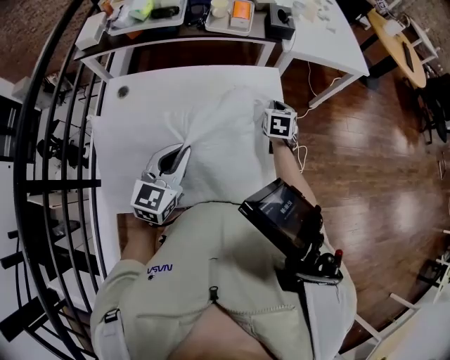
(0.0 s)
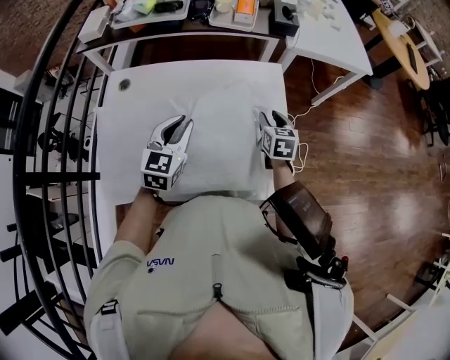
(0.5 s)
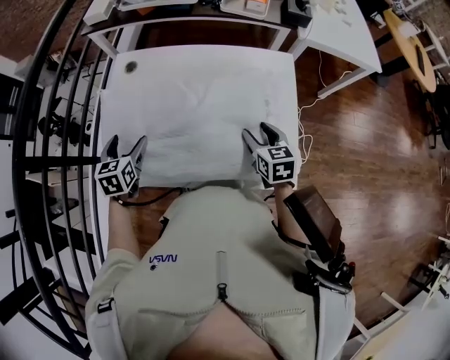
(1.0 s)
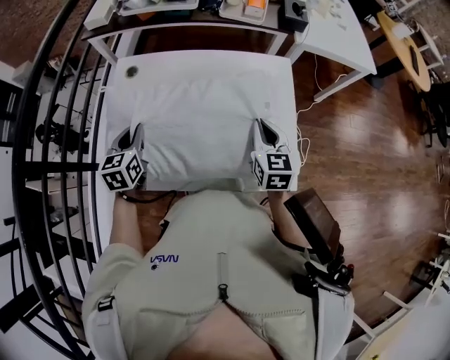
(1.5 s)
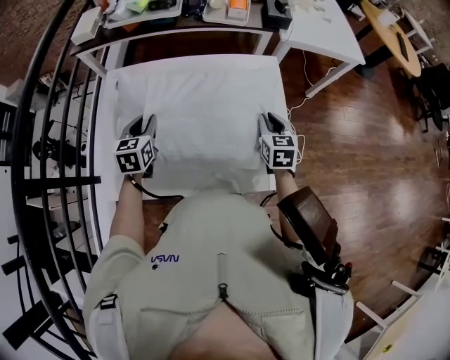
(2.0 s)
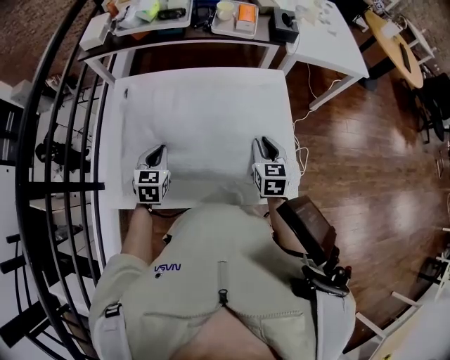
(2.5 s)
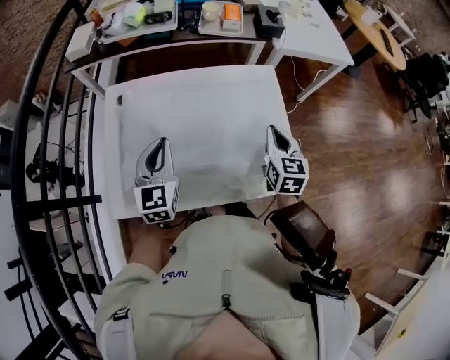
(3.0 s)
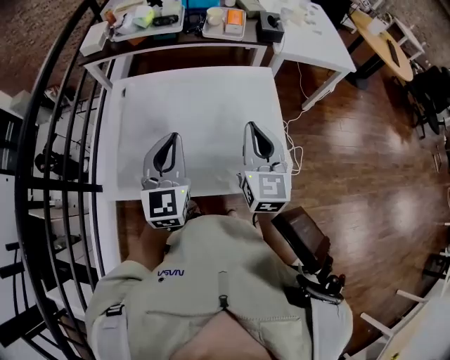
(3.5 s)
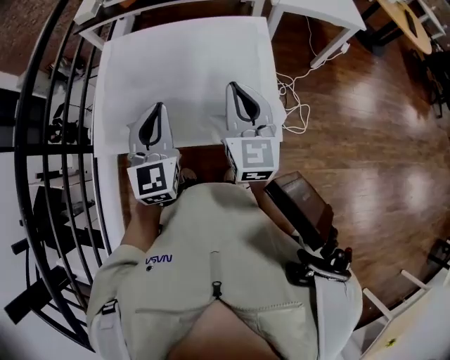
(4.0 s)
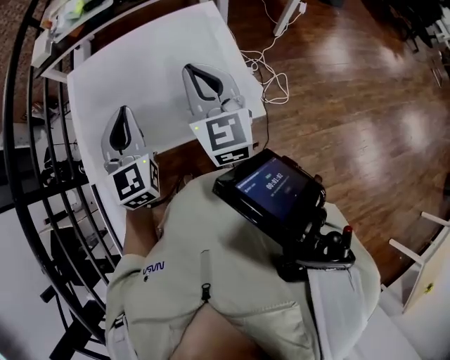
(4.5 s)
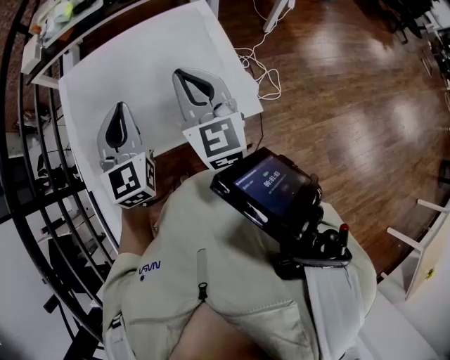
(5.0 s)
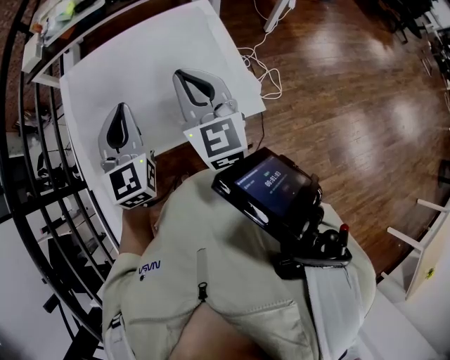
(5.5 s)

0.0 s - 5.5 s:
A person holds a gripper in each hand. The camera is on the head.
0.0 s - 2.0 s: The right gripper opens, then closes once more. Meanwhile the left gripper shifts by approximately 20 cm, swivels some 30 degrees, and opens and closes again.
2.0 s - 3.5 s: The left gripper heads upward, backward and to the right, covering about 25 cm, and changes its angle by approximately 30 degrees; the right gripper moves upward and backward, approximately 20 cm, and changes its angle by about 30 degrees.

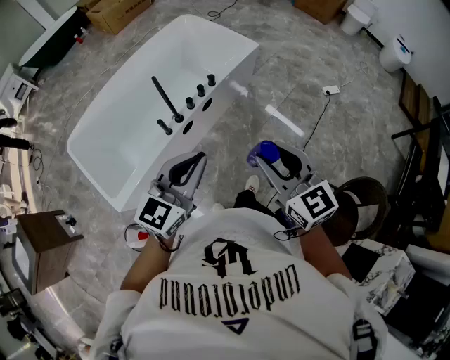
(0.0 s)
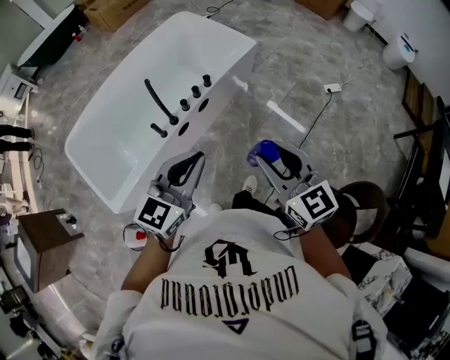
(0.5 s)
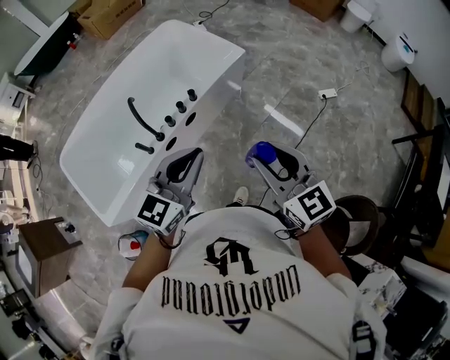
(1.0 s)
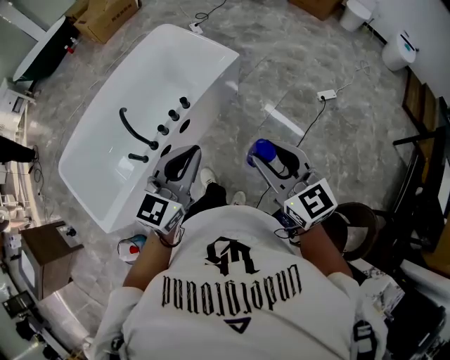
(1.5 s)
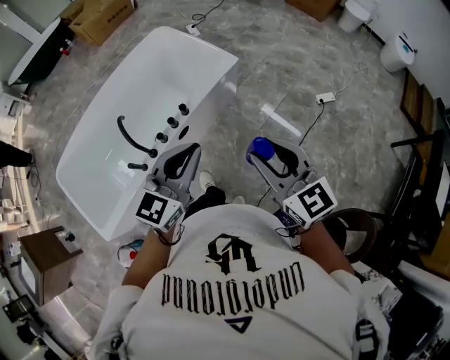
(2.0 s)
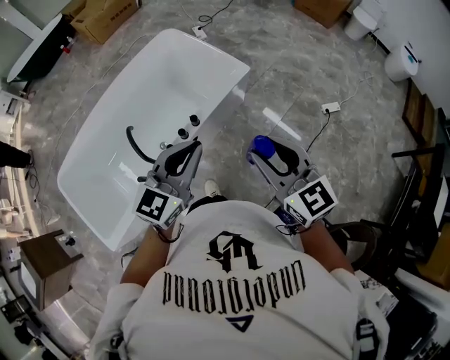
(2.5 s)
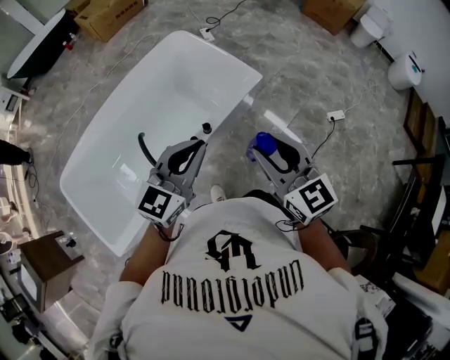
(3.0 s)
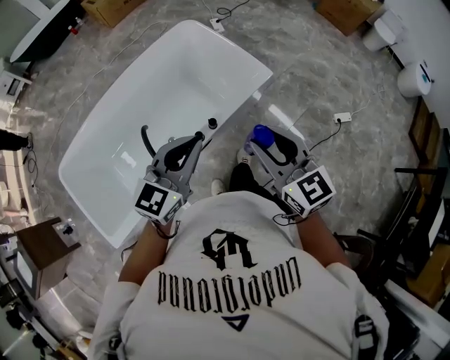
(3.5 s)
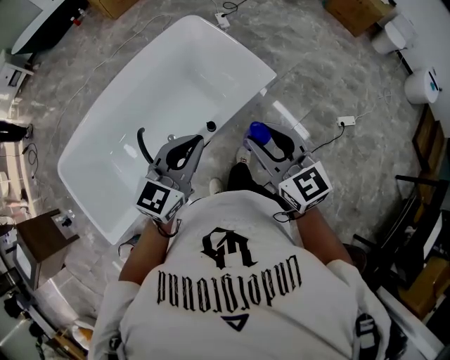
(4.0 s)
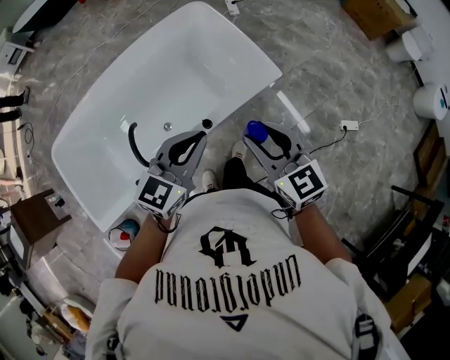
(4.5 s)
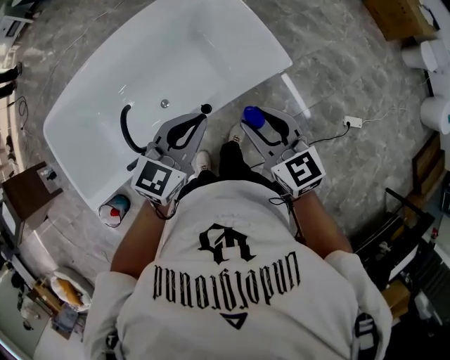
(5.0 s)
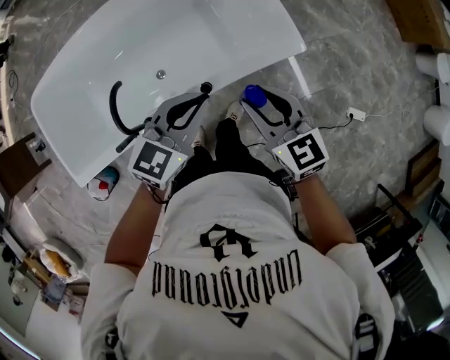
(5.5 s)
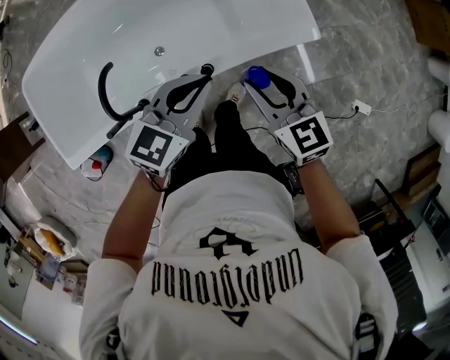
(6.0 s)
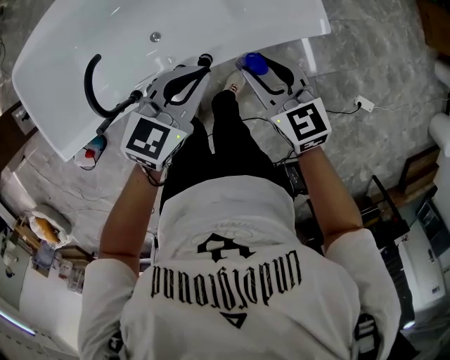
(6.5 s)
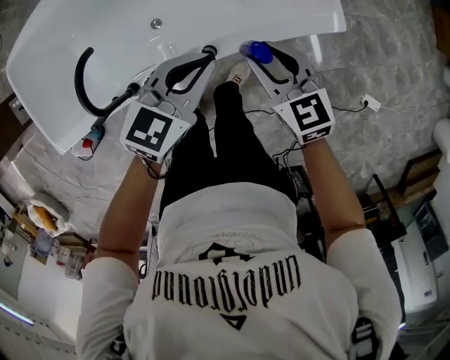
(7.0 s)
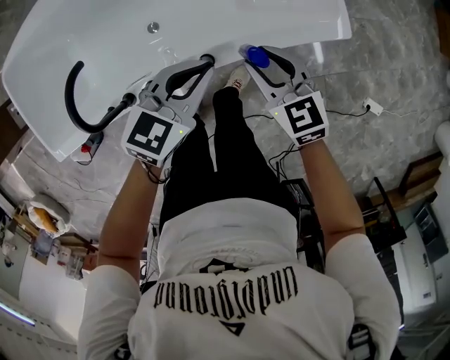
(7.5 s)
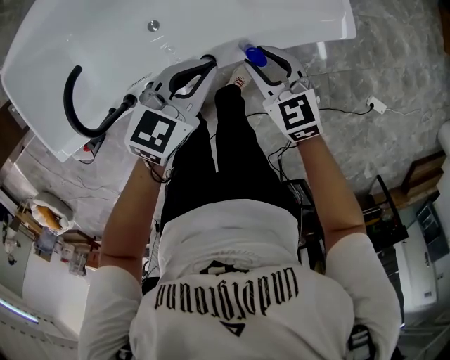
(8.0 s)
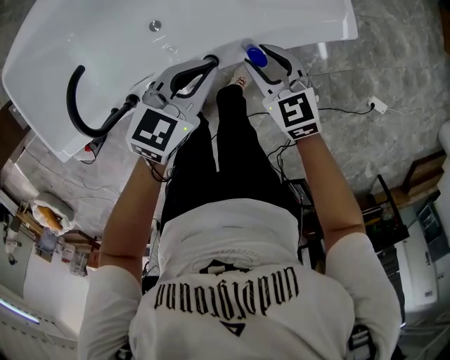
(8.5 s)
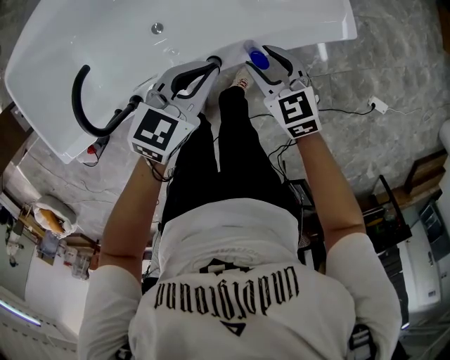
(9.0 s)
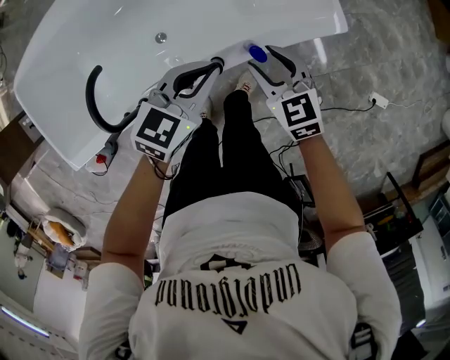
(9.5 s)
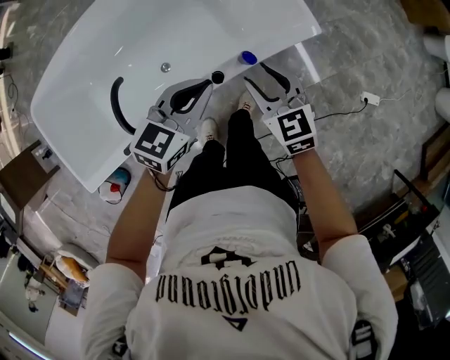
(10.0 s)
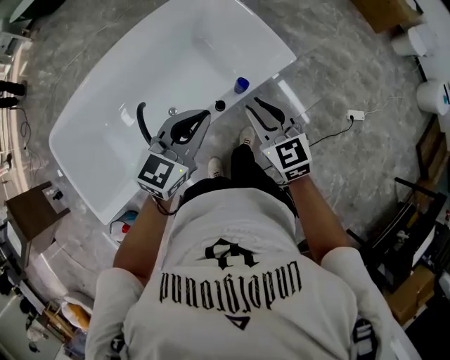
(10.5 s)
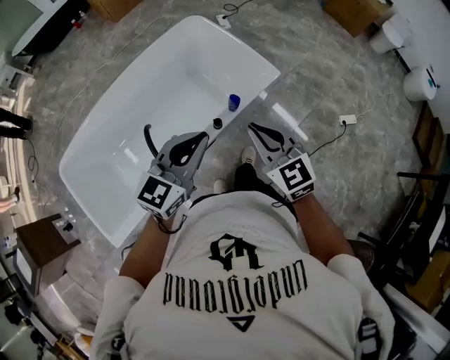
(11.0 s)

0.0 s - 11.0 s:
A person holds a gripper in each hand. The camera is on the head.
0.0 s - 2.0 s: The grippers both shift forward and to the right by approximately 30 cm.
2.0 s - 3.5 s: The grippers both shift forward and to the left by approximately 25 cm.
3.5 s - 5.5 s: The two grippers go approximately 25 cm forward and downward. The right gripper changes its angle by approximately 30 degrees.
5.5 s - 7.5 s: Both grippers move downward, about 20 cm.
7.5 s - 9.0 s: The grippers make only small movements.
9.0 s - 11.0 s: Both grippers move upward and backward, some 40 cm. The left gripper rotates roughly 30 degrees, while the right gripper turns by approximately 30 degrees, and closes.

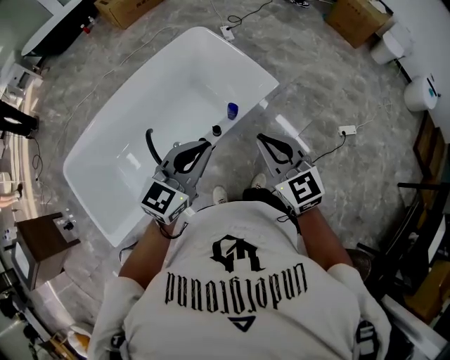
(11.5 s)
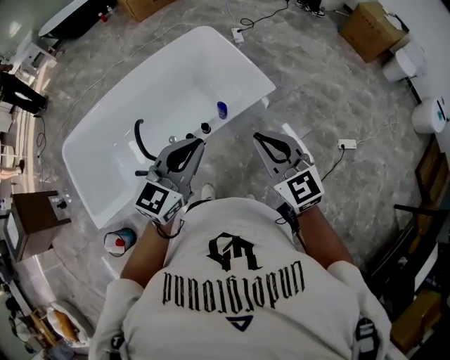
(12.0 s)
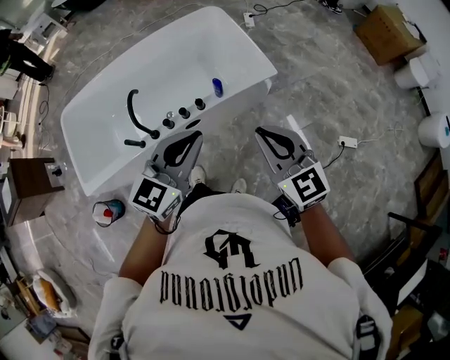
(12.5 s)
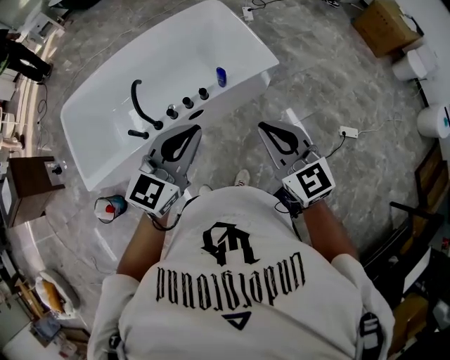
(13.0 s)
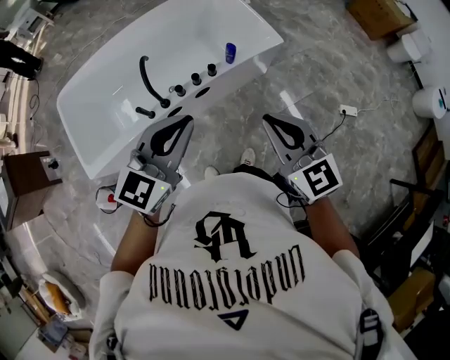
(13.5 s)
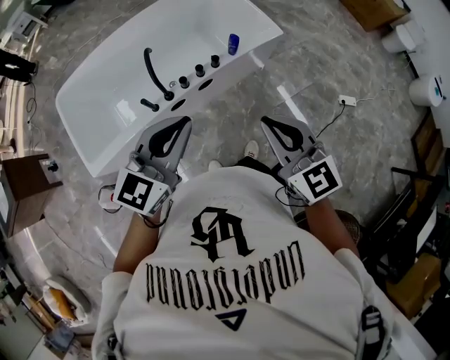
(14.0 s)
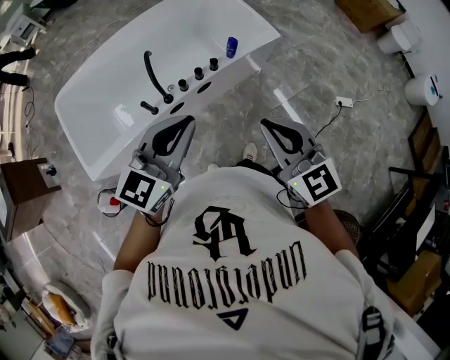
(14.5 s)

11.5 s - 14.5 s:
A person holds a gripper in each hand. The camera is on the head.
11.5 s - 13.0 s: The right gripper is displaced to the right and backward by about 15 cm; the left gripper is displaced backward and to the right by approximately 15 cm.
13.0 s - 14.5 s: Both grippers travel together to the left and backward, roughly 20 cm.

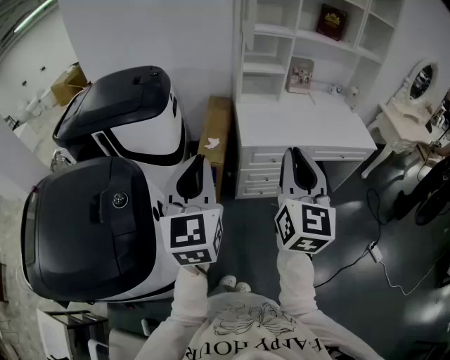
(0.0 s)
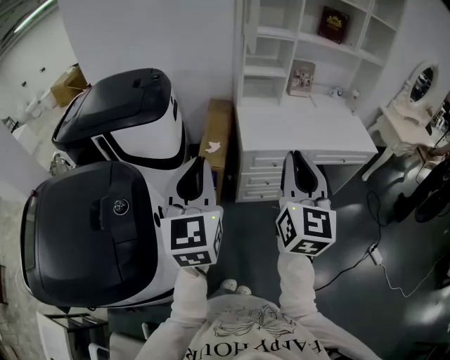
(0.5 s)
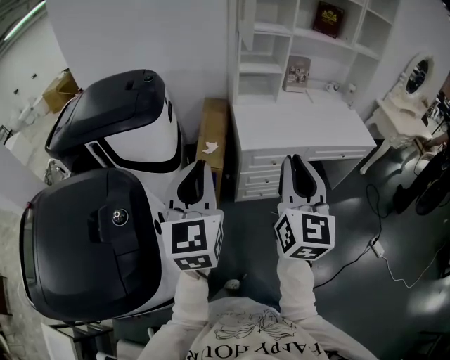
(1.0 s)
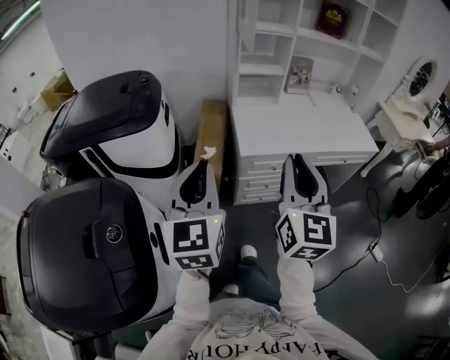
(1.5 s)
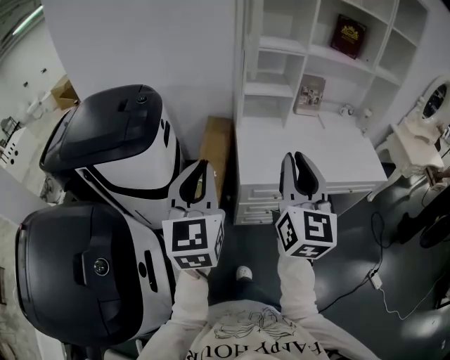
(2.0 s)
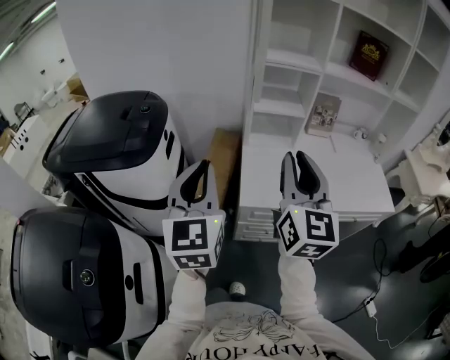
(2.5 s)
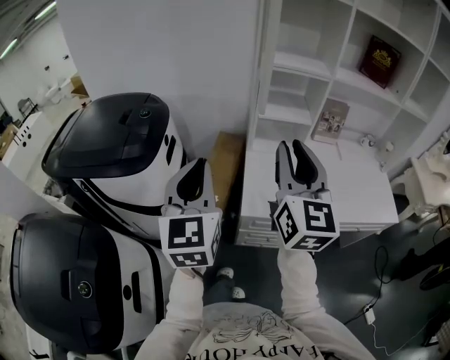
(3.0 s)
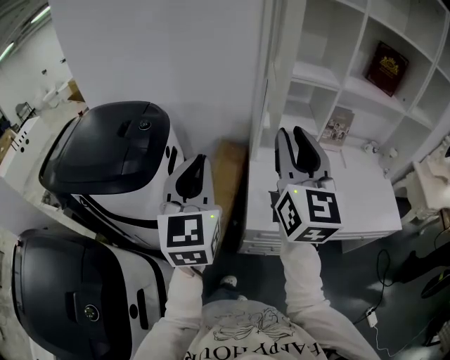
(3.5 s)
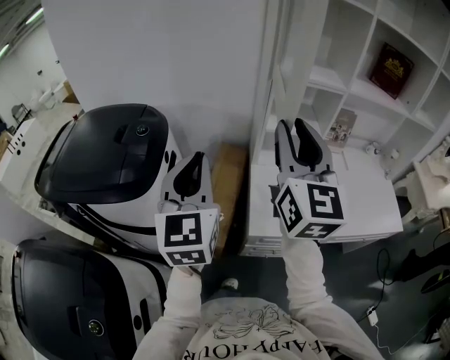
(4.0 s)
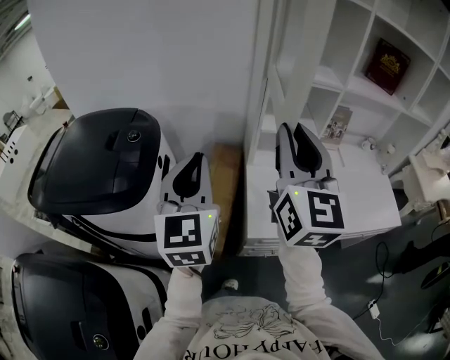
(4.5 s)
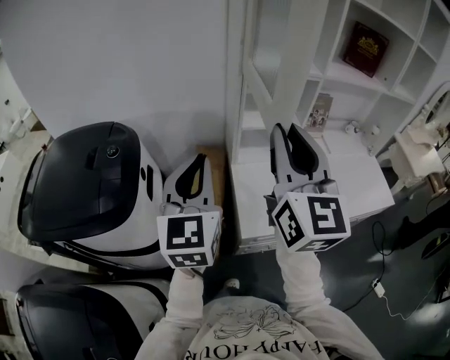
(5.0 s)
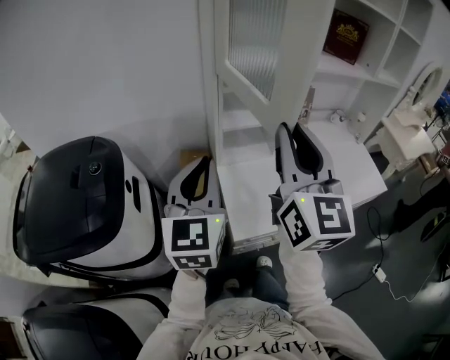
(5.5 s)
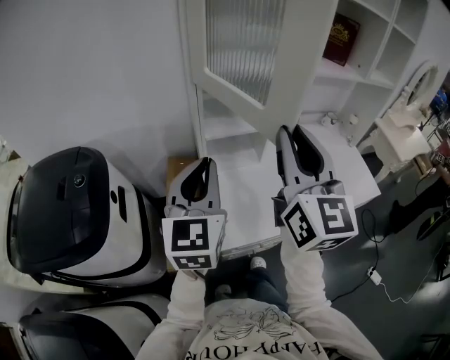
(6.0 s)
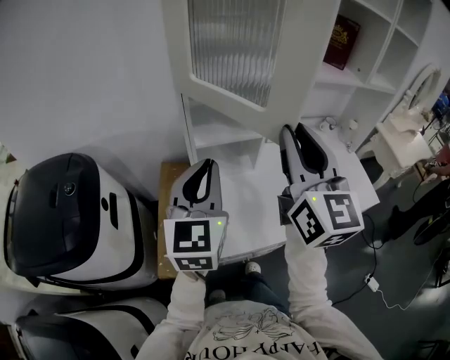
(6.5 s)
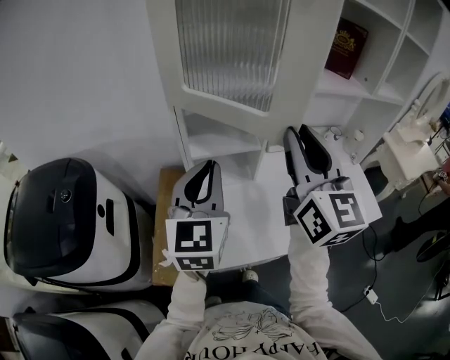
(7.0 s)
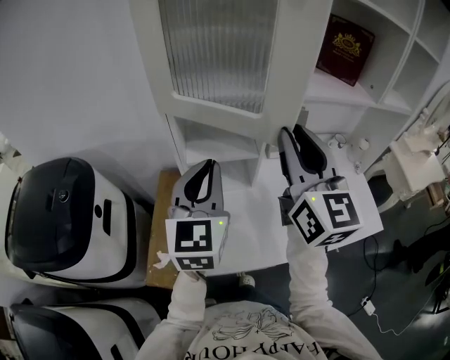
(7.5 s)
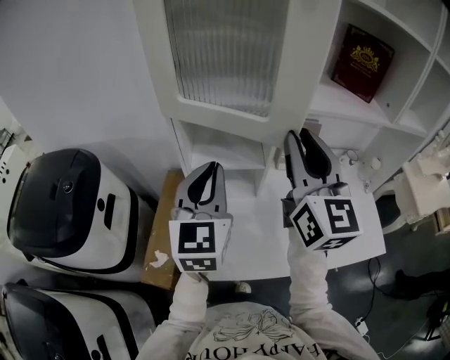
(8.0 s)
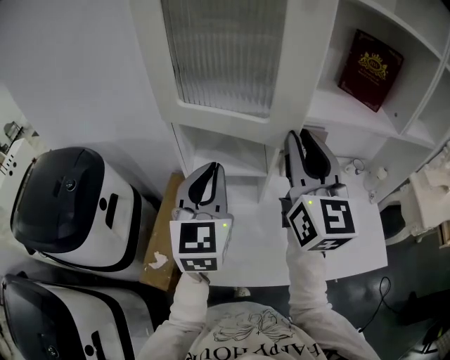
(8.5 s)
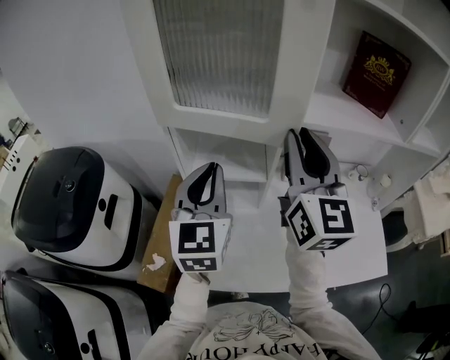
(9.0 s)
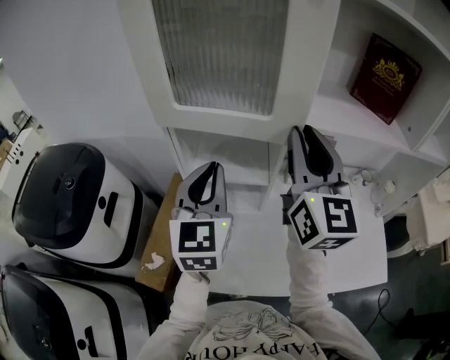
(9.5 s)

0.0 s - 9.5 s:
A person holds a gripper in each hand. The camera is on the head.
0.0 s - 2.0 s: The two grippers go about 20 cm forward.
2.0 s - 4.0 s: Both grippers travel together forward, about 25 cm.
4.0 s - 5.5 s: The right gripper heads to the right, covering about 5 cm. The left gripper moves to the right and forward, approximately 10 cm.
5.5 s - 7.5 s: Both grippers move to the right and forward, roughly 20 cm.
7.5 s - 9.5 s: Both grippers move forward, about 10 cm.
